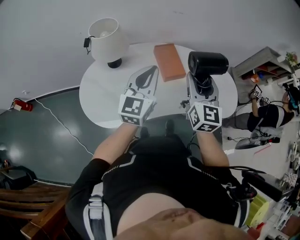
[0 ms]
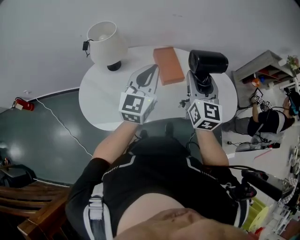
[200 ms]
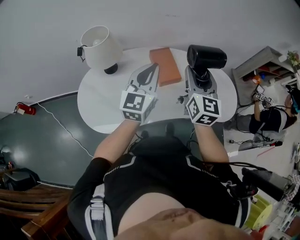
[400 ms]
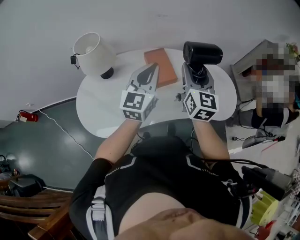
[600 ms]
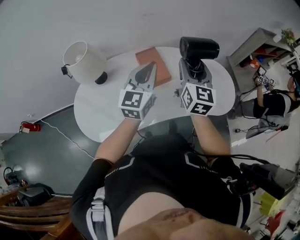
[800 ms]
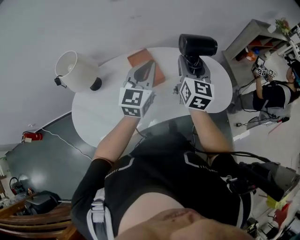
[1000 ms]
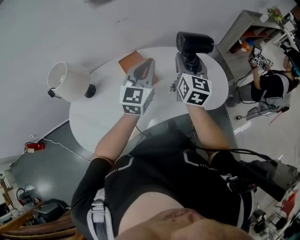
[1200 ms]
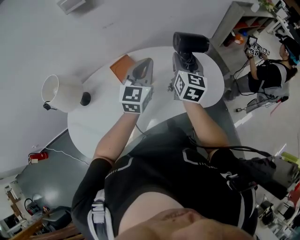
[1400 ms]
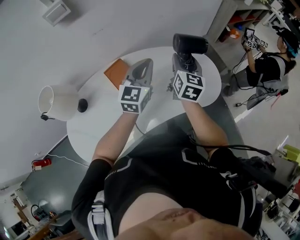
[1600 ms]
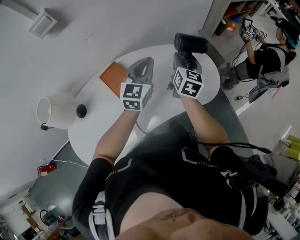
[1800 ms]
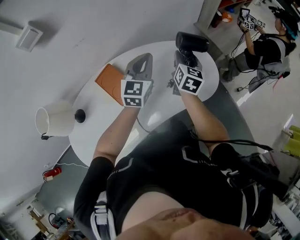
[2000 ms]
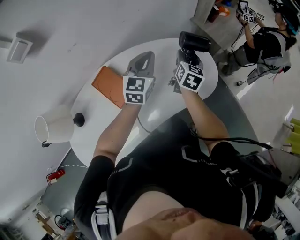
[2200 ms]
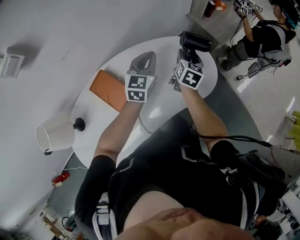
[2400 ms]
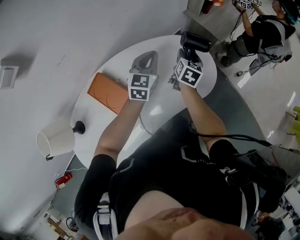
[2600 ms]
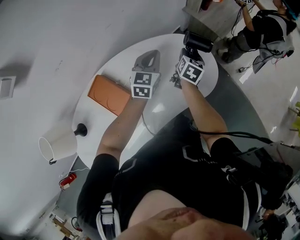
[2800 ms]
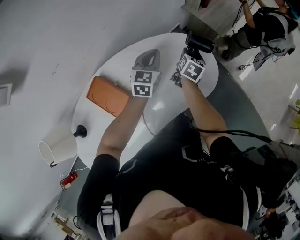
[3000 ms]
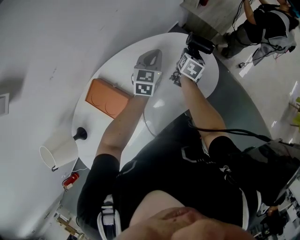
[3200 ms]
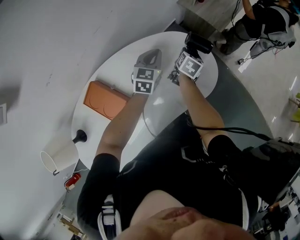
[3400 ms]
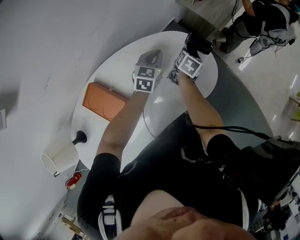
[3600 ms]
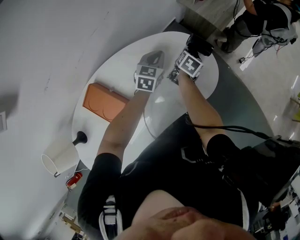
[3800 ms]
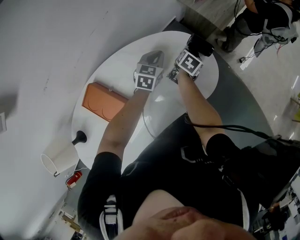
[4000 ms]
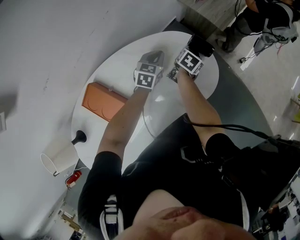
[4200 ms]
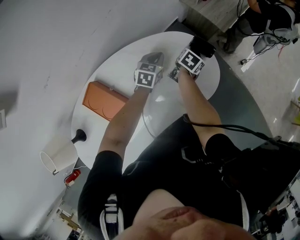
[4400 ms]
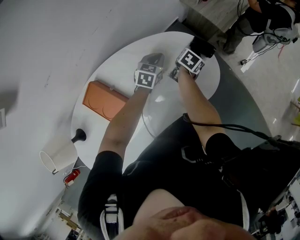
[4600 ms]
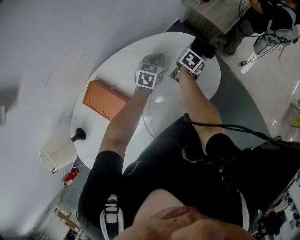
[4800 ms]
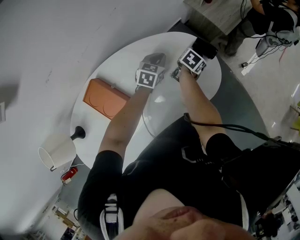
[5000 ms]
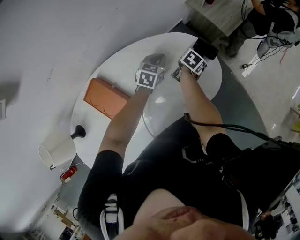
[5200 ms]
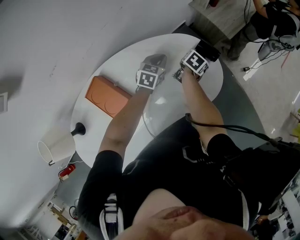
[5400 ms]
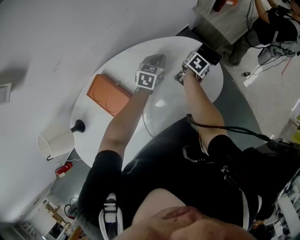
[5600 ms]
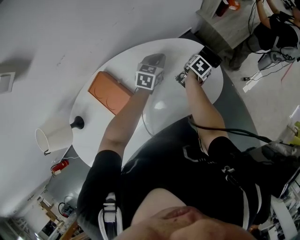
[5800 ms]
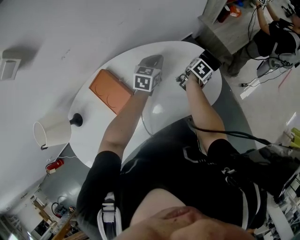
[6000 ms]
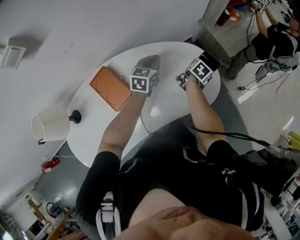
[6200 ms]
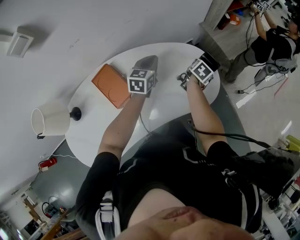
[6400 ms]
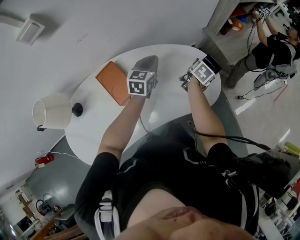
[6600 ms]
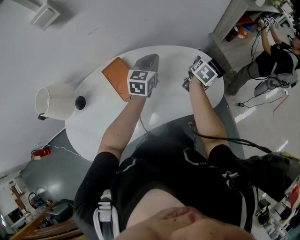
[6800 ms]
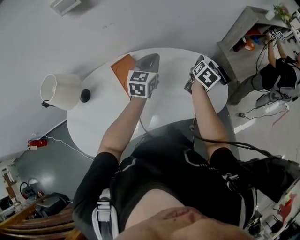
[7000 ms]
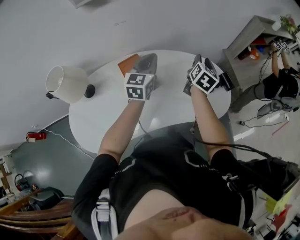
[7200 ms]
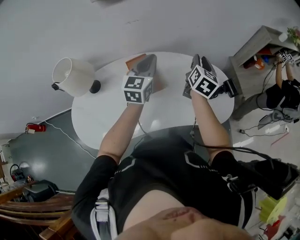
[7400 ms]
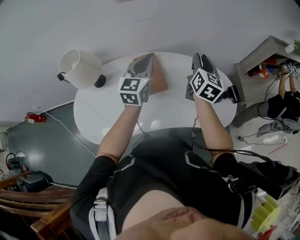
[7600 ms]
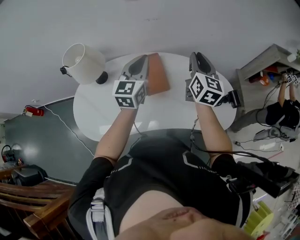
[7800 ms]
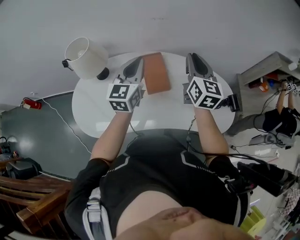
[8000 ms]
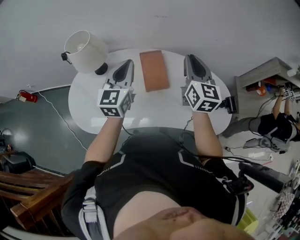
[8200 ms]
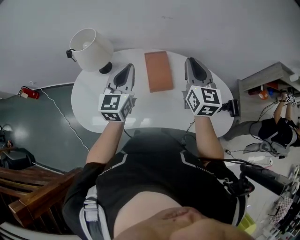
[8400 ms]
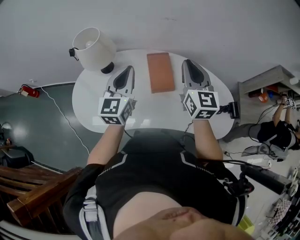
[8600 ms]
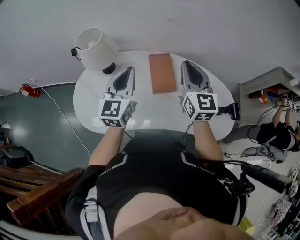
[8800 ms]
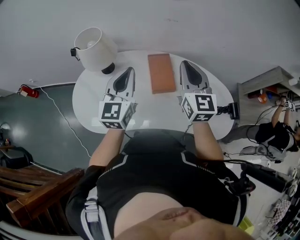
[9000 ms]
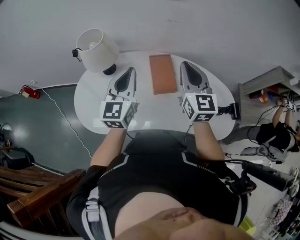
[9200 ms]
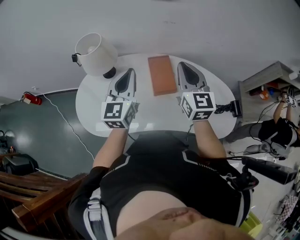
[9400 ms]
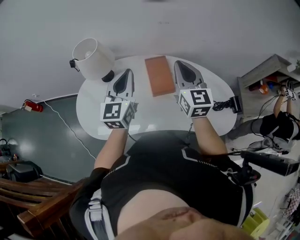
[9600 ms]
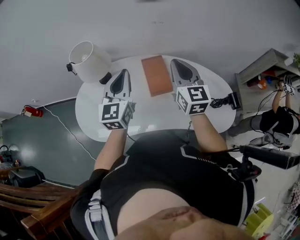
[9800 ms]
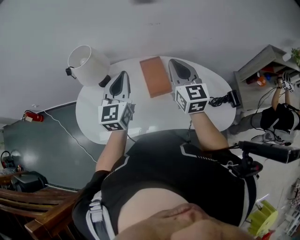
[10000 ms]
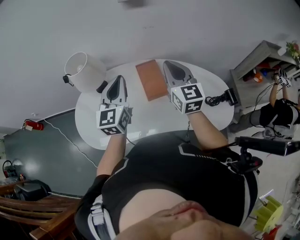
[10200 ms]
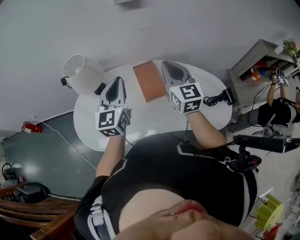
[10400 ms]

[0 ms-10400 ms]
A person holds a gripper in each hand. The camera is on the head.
0 ms to 1400 ms: Both grippers travel together to the right and forward, about 25 cm. The right gripper turns by roughly 30 degrees.
1400 ms to 3000 ms: The right gripper moves downward, about 25 cm, and changes its angle by approximately 50 degrees; the left gripper moves about 30 cm, and swivels approximately 30 degrees.
3000 ms to 4400 ms: The grippers both shift downward by some 10 cm. The right gripper swivels about 20 degrees.
4400 ms to 6000 ms: The left gripper heads upward, covering about 10 cm.
6000 ms to 7400 ms: The left gripper changes place by roughly 35 cm, and swivels about 40 degrees; the right gripper travels upward by some 30 cm, angles its fingers upward, by about 40 degrees, and closes up.
7400 ms to 9000 ms: The left gripper shifts by some 25 cm, and turns by about 20 degrees. The right gripper moves roughly 25 cm, and swivels roughly 50 degrees.
9000 ms to 10400 ms: There are only small adjustments of the grippers.

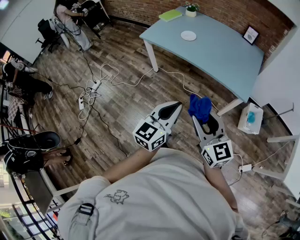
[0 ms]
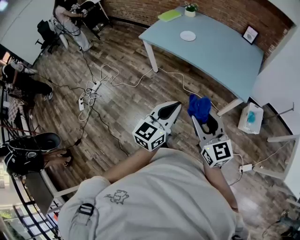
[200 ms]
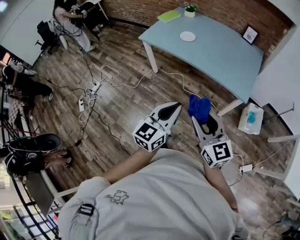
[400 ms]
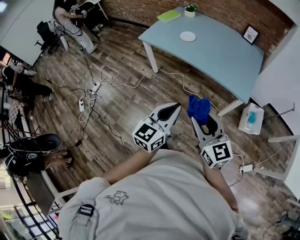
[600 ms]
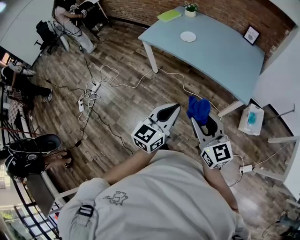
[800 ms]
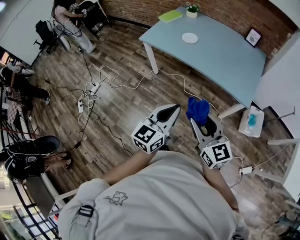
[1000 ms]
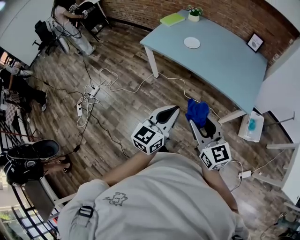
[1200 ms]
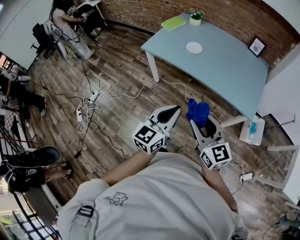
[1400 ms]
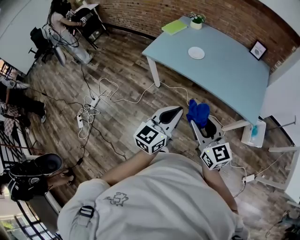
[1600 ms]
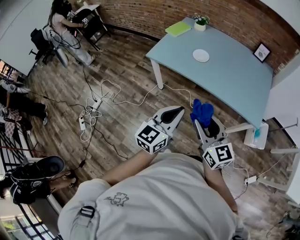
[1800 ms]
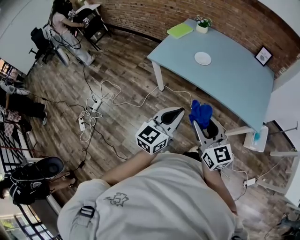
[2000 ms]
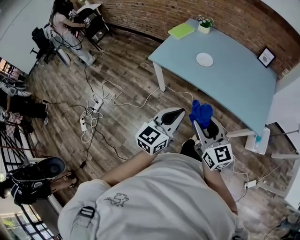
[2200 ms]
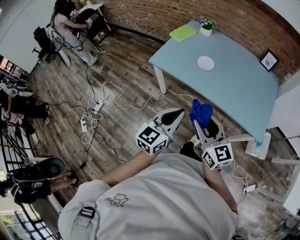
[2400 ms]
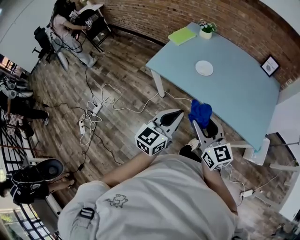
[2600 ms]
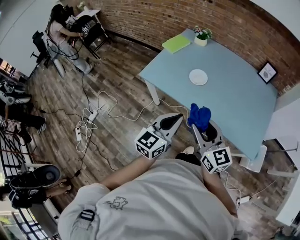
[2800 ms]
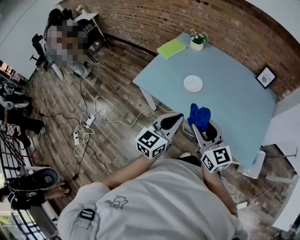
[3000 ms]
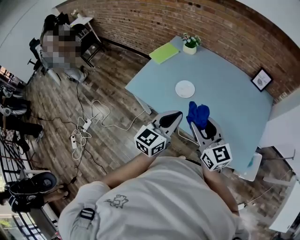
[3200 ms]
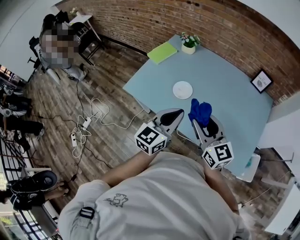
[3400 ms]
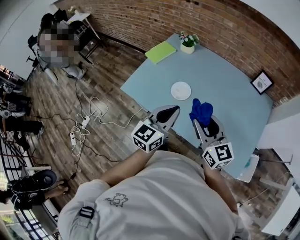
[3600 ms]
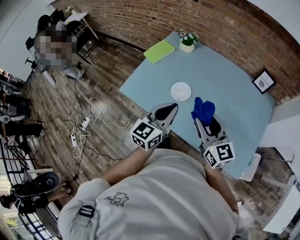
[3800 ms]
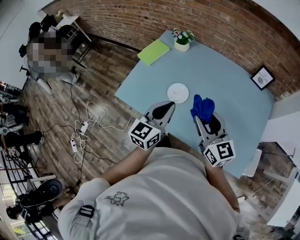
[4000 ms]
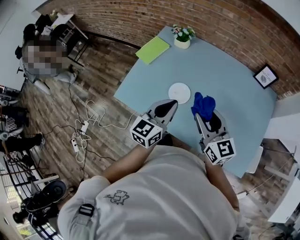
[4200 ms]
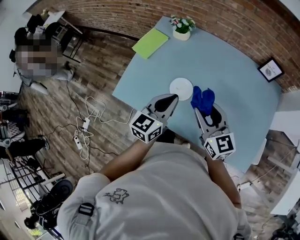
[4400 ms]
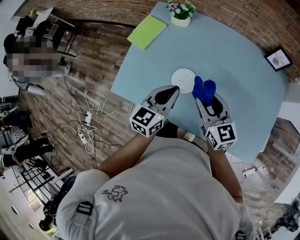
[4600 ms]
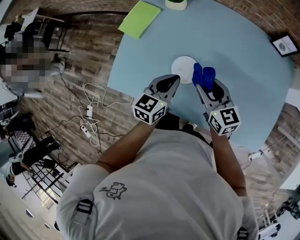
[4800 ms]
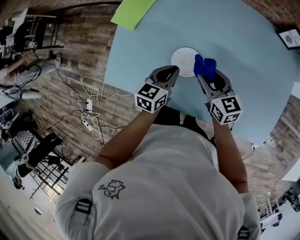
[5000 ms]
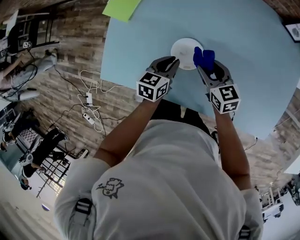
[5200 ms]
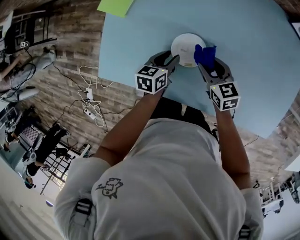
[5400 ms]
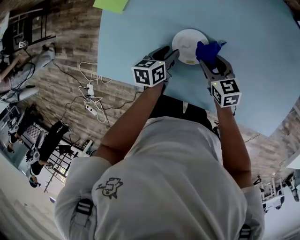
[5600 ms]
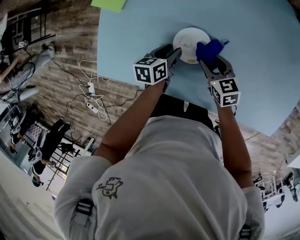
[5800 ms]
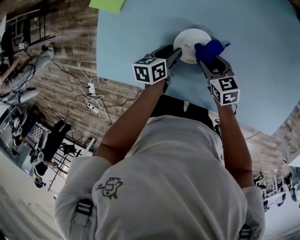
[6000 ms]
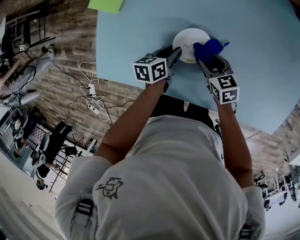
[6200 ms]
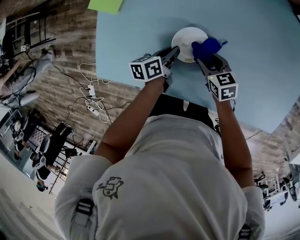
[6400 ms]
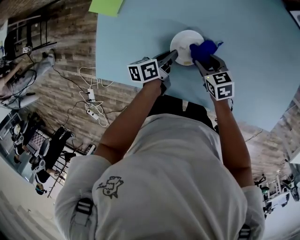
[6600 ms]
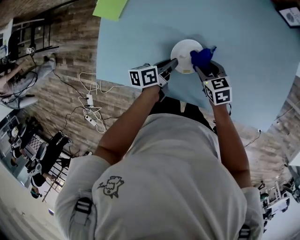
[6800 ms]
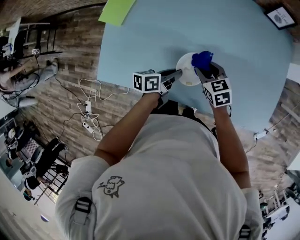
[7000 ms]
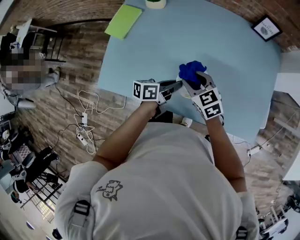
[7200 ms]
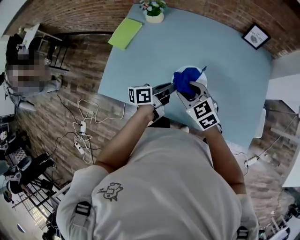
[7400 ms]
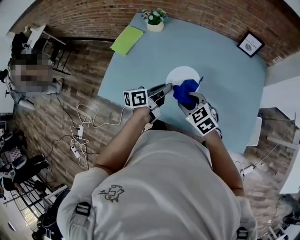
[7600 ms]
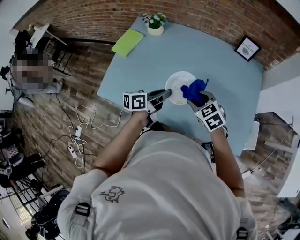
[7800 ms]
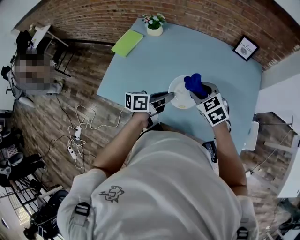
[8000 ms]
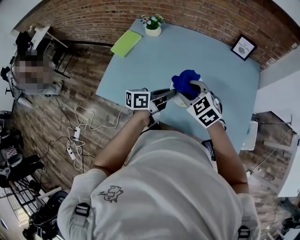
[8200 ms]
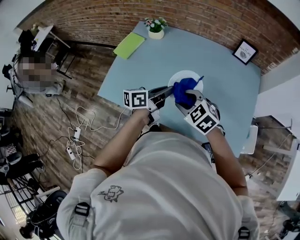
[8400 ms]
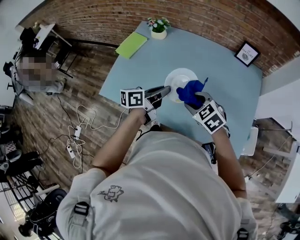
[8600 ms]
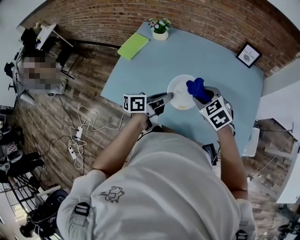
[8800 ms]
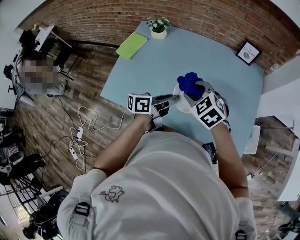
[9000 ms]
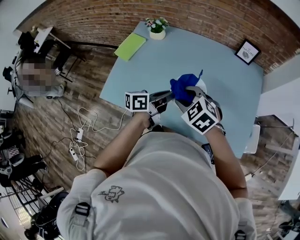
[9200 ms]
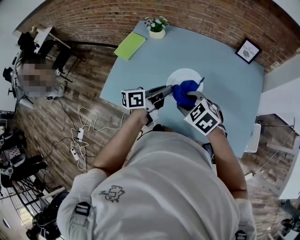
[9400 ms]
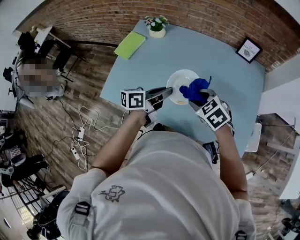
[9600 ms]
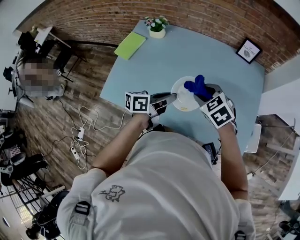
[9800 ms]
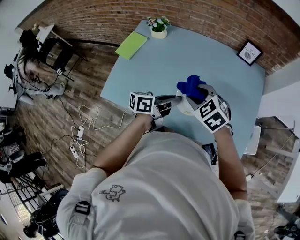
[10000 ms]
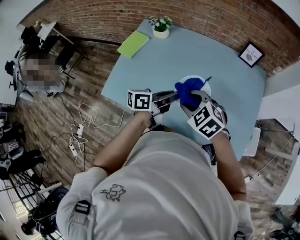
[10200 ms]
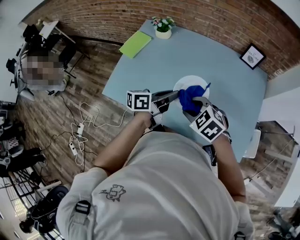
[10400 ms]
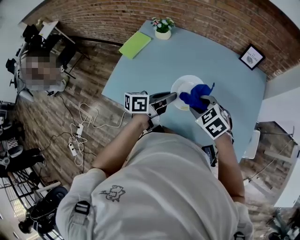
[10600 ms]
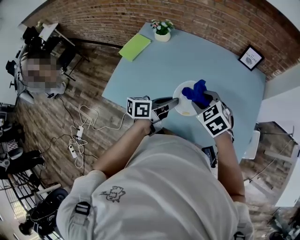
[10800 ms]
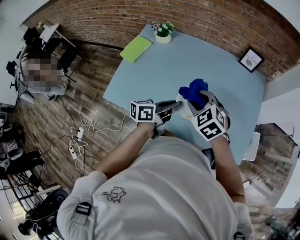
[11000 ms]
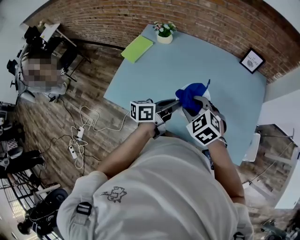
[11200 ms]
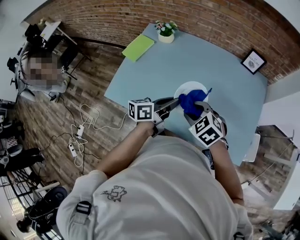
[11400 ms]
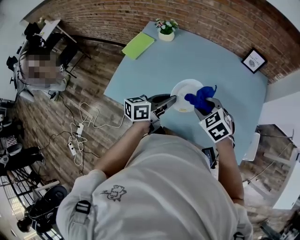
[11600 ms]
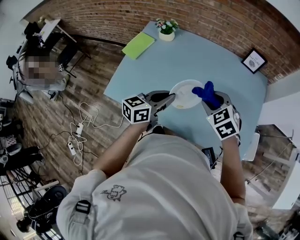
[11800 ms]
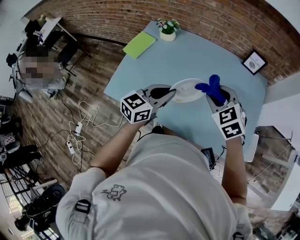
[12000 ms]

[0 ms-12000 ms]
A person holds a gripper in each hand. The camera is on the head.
0 ms to 1600 ms: Both grippers travel together forward and to the left, about 20 cm.
1600 ms to 3000 ms: Both grippers travel together forward, approximately 30 cm.
3000 ms to 4400 ms: Both grippers travel together forward, some 30 cm.
4400 ms to 6000 ms: The grippers both shift downward by some 35 cm. The left gripper tips its fingers downward by roughly 30 degrees, and opens its fingers; the right gripper points its fingers roughly 40 degrees further downward.
6000 ms to 7600 ms: The right gripper heads upward and backward, covering about 30 cm, and swivels roughly 30 degrees, while the left gripper shifts roughly 30 cm upward and to the right, tilts its fingers approximately 30 degrees upward, and closes.
7600 ms to 9000 ms: The right gripper shifts roughly 10 cm upward, while the left gripper changes place by about 10 cm.
9000 ms to 10400 ms: The right gripper is displaced backward by some 5 cm, and moves some 5 cm to the right and comes back.
10400 ms to 12000 ms: The left gripper shifts roughly 5 cm upward, and rotates roughly 40 degrees; the right gripper goes roughly 10 cm forward, upward and to the right, and changes its angle by roughly 20 degrees.

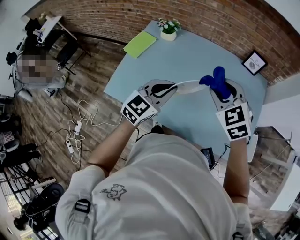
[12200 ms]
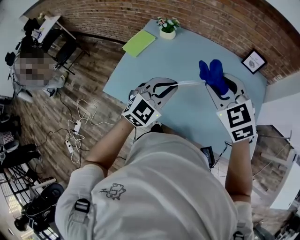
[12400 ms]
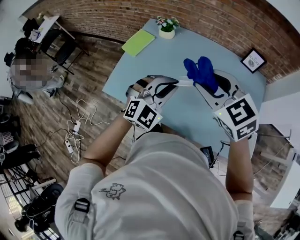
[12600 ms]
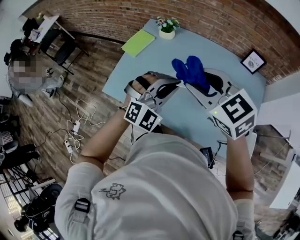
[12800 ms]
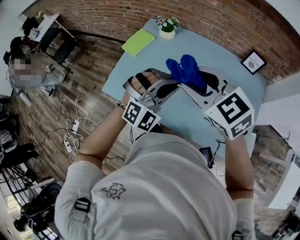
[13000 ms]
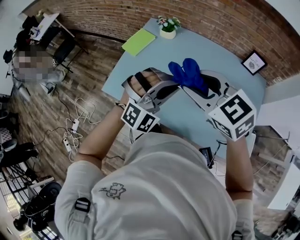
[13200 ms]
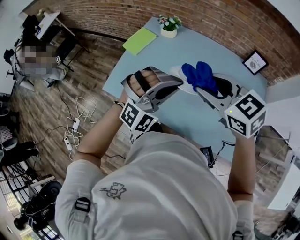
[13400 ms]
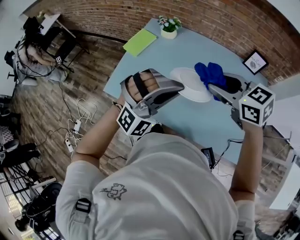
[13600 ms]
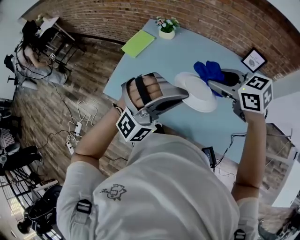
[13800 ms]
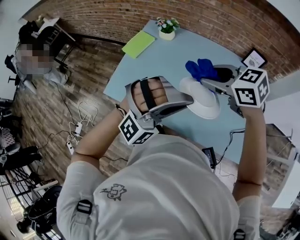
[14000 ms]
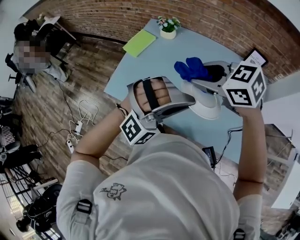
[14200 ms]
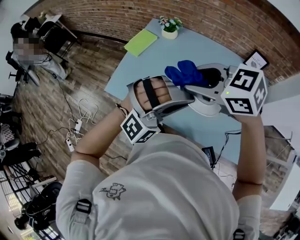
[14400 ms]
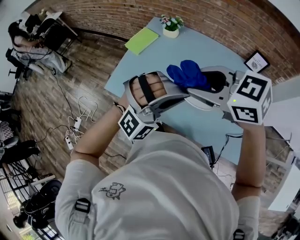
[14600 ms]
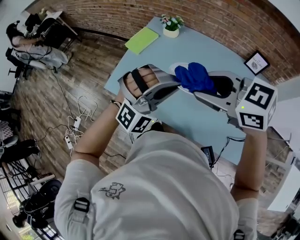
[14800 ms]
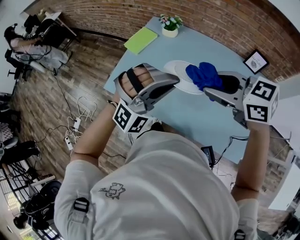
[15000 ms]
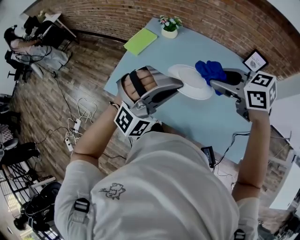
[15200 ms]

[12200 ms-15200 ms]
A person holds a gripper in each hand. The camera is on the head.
12200 ms to 13800 ms: The left gripper heads upward and backward, covering some 10 cm, and twists some 70 degrees clockwise, seen from behind. The right gripper travels to the left and back again, some 10 cm each way, and changes its angle by about 40 degrees.
